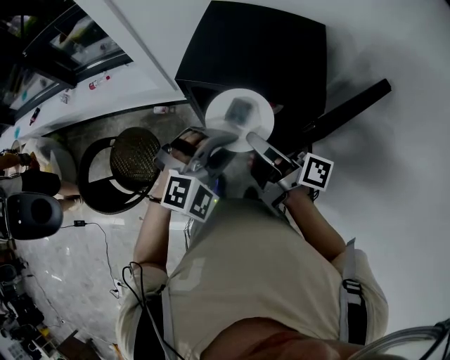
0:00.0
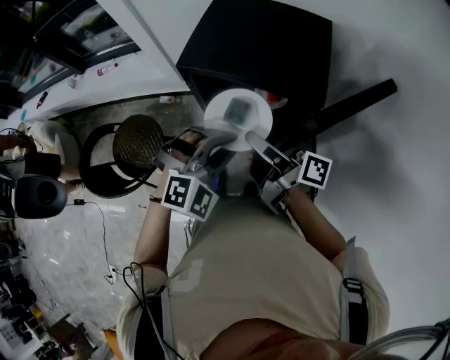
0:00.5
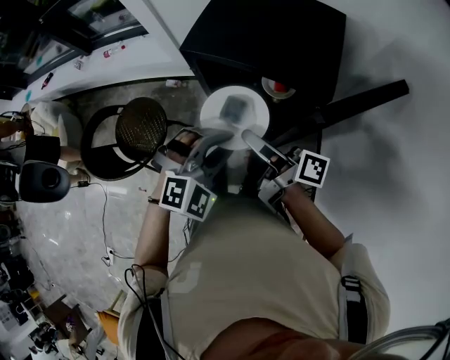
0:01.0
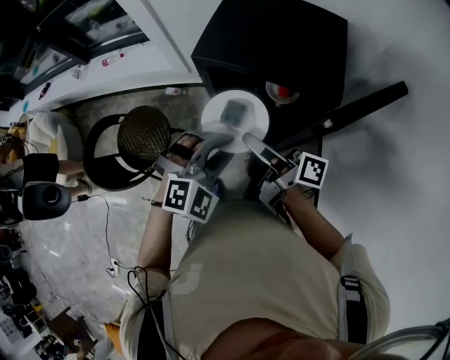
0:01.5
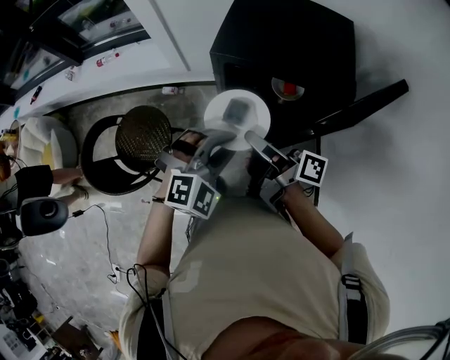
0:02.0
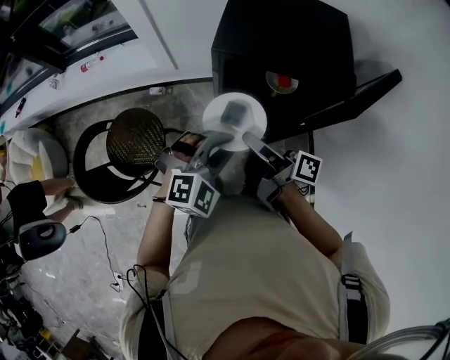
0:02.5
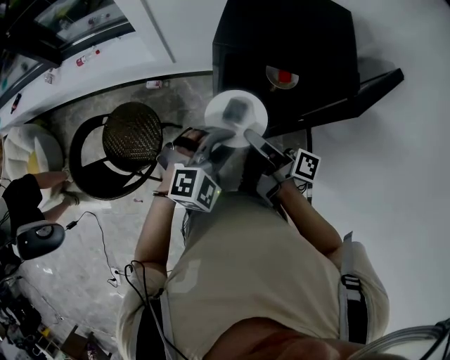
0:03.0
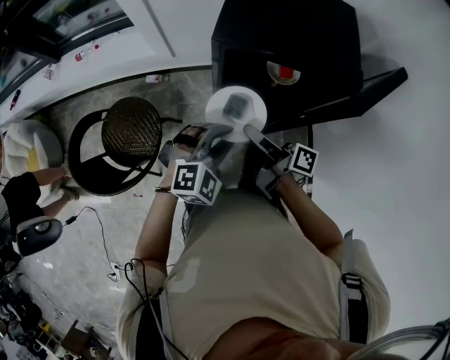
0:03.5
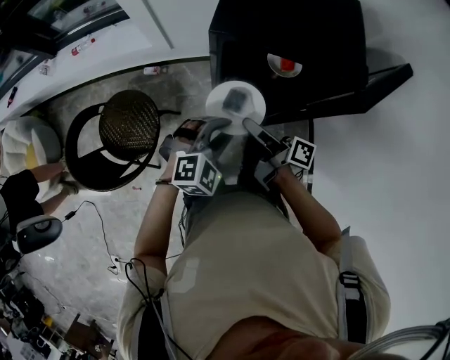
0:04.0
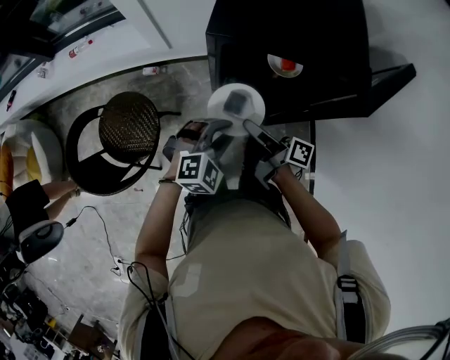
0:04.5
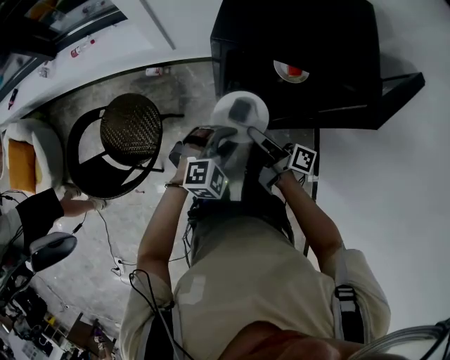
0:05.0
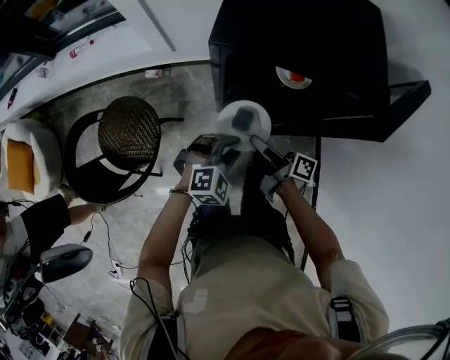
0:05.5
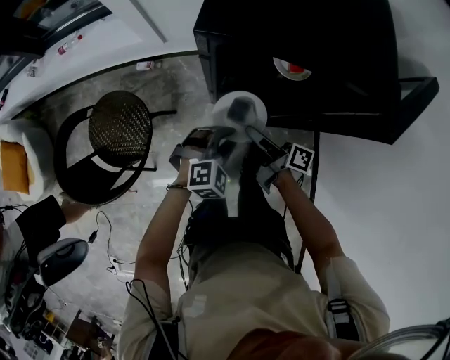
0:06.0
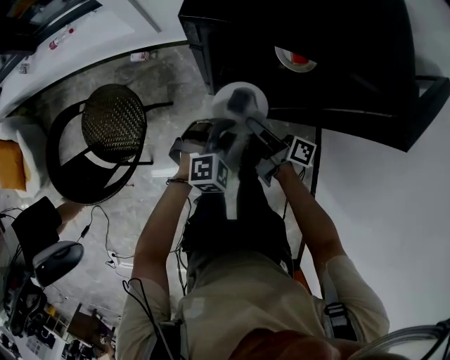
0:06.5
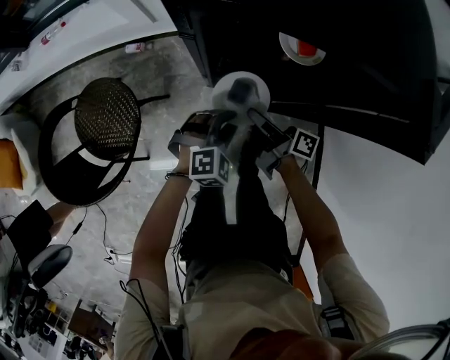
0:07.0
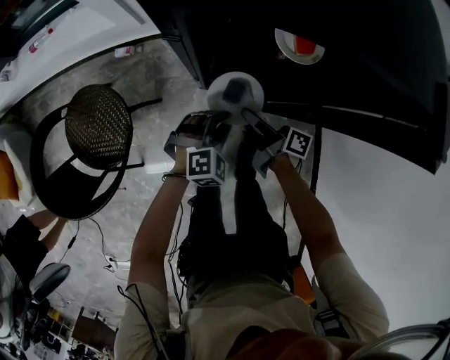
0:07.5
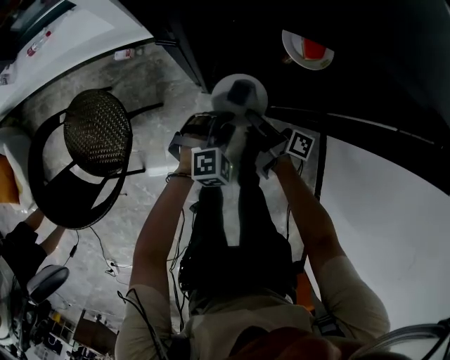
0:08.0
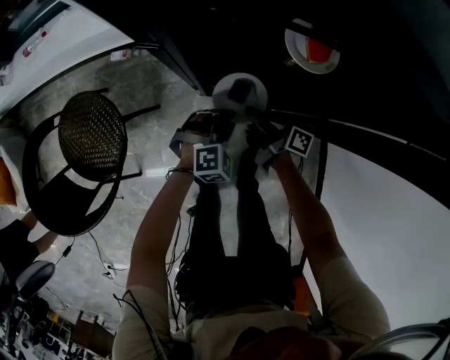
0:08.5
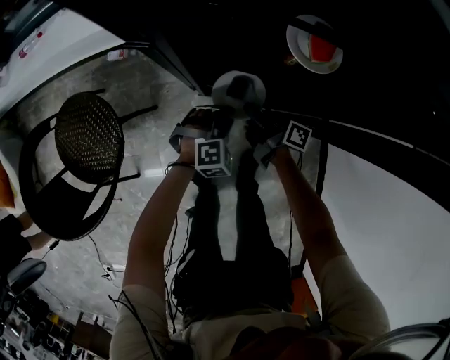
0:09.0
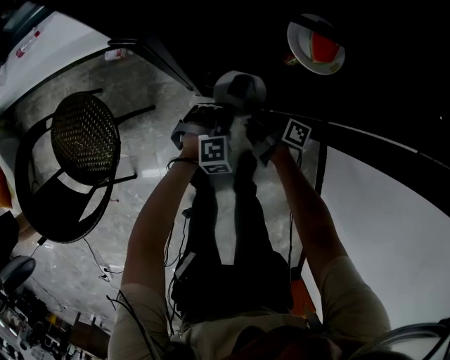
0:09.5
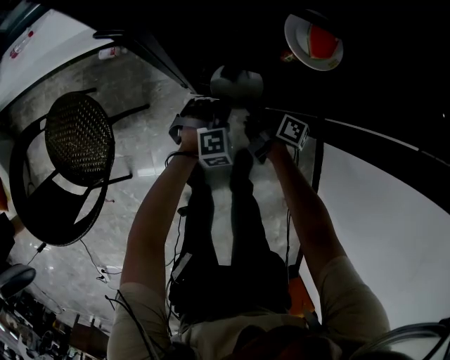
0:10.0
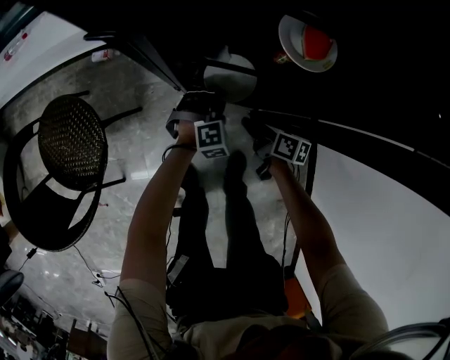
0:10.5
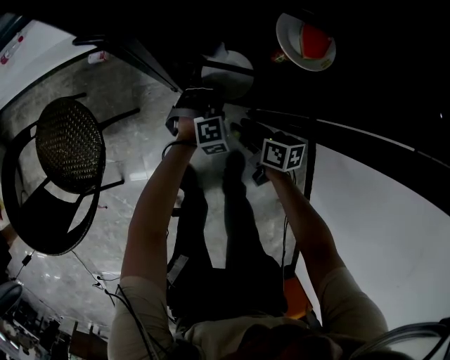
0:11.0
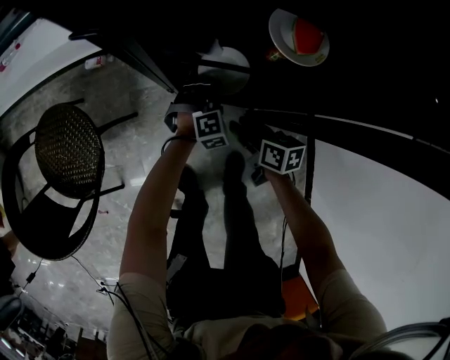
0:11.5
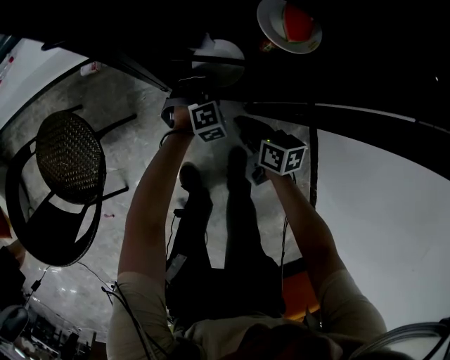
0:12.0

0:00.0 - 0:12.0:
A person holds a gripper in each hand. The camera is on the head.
0:00.0 - 0:02.0: The grippers both shift to the left by approximately 10 cm.
0:02.0 - 0:04.0: Both grippers move downward, some 10 cm.
0:04.0 - 0:06.0: The two grippers go roughly 15 cm downward.
0:06.0 - 0:08.0: The two grippers go approximately 15 cm downward.
0:08.0 - 0:10.0: The left gripper travels downward and forward by about 10 cm. The right gripper travels downward by approximately 10 cm.
0:10.0 - 0:12.0: The left gripper shifts about 5 cm forward, while the right gripper is displaced backward by some 5 cm, and turns by approximately 40 degrees.

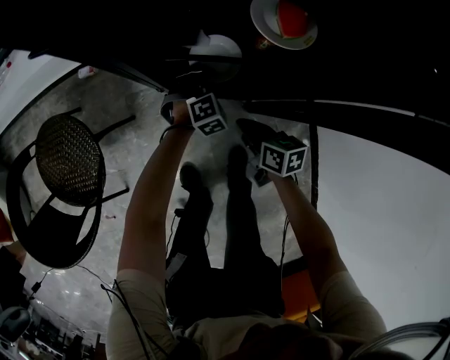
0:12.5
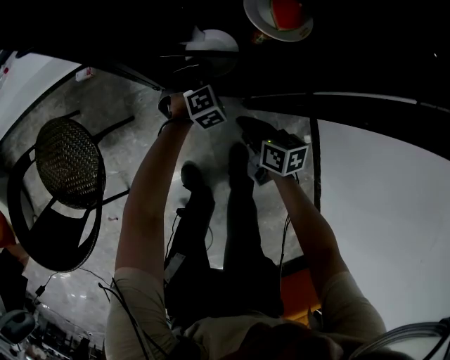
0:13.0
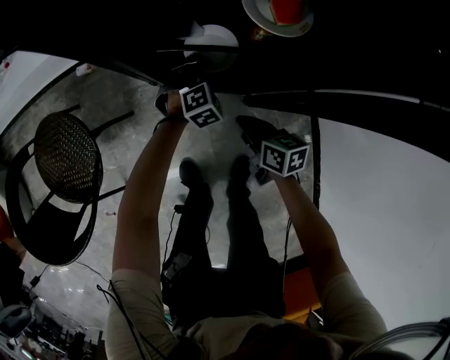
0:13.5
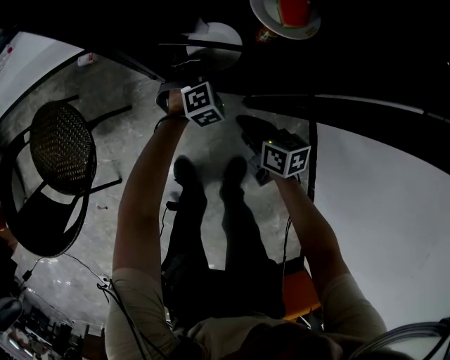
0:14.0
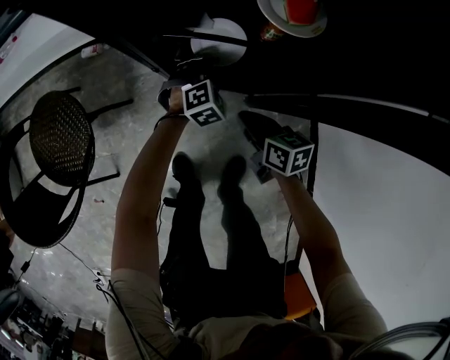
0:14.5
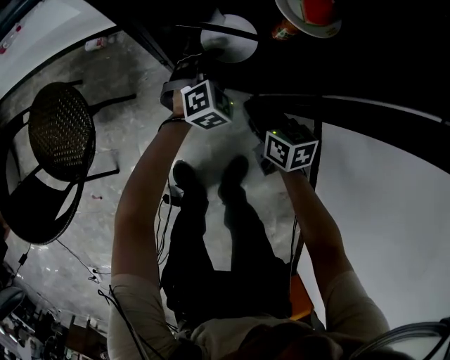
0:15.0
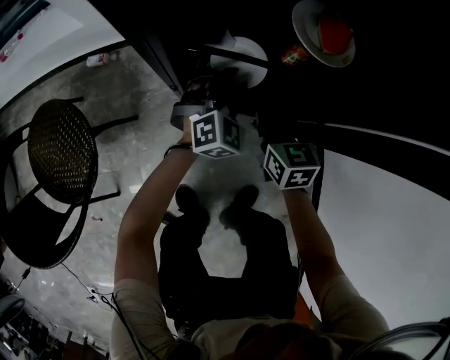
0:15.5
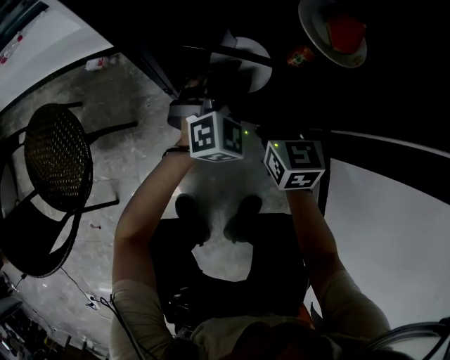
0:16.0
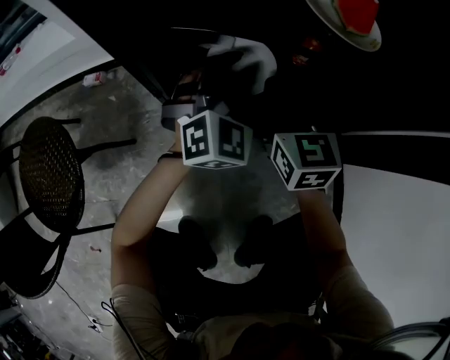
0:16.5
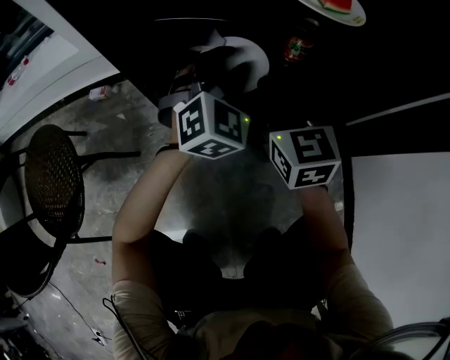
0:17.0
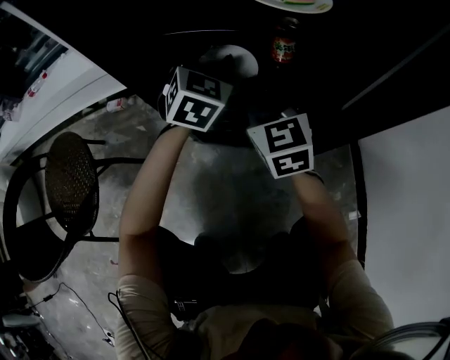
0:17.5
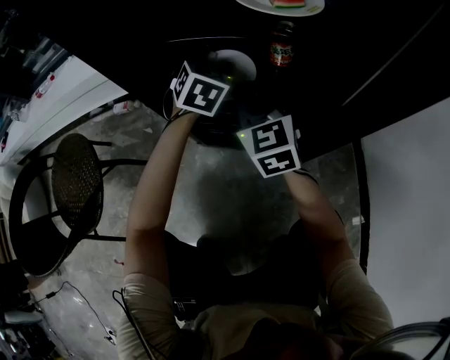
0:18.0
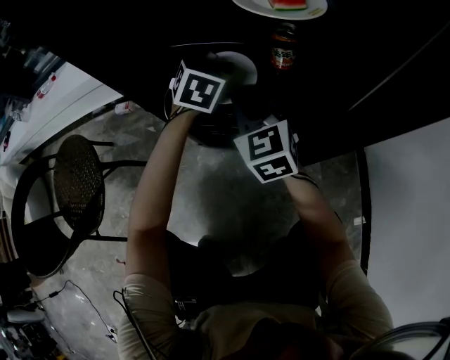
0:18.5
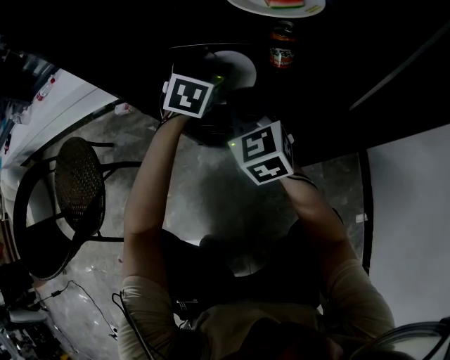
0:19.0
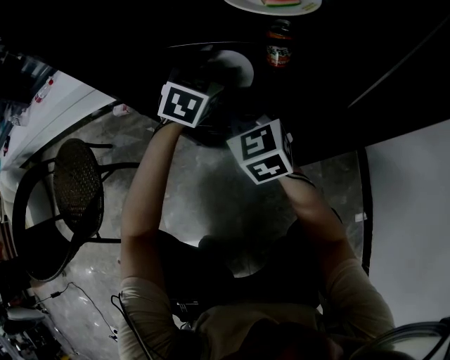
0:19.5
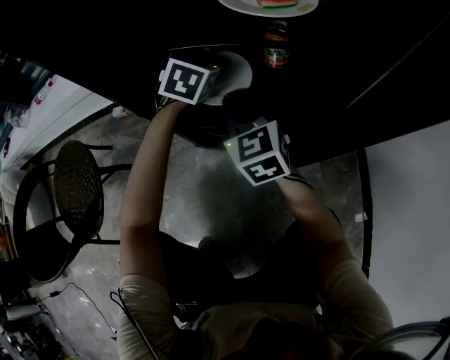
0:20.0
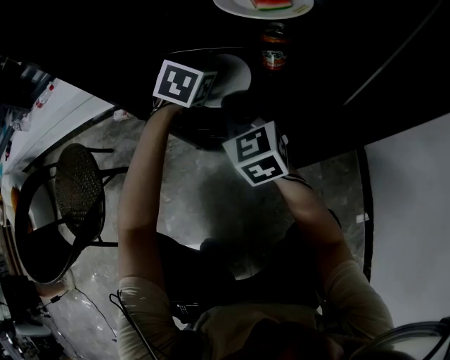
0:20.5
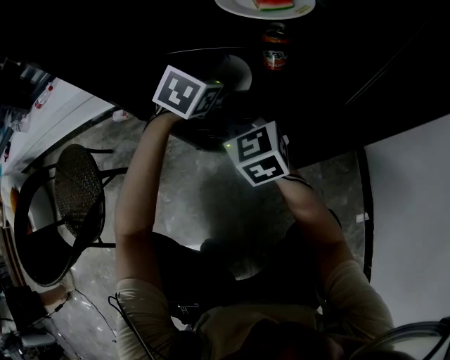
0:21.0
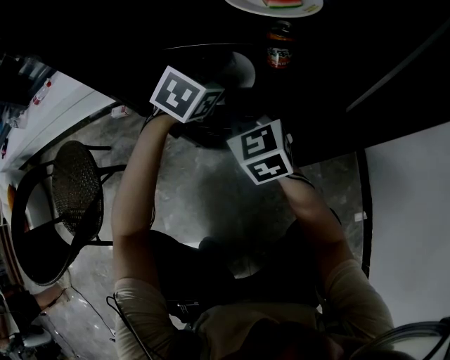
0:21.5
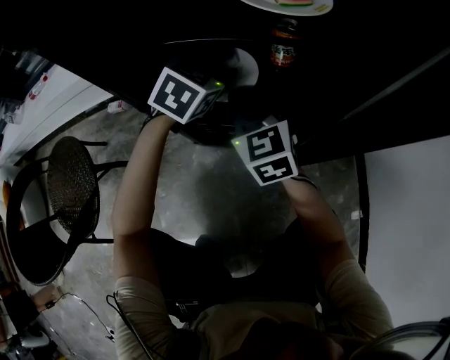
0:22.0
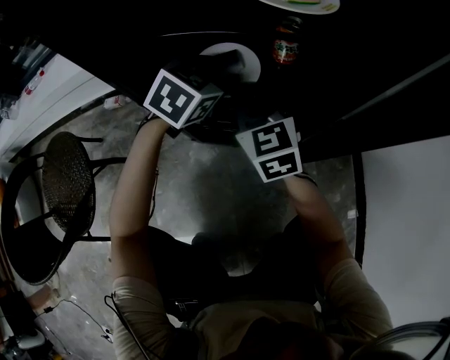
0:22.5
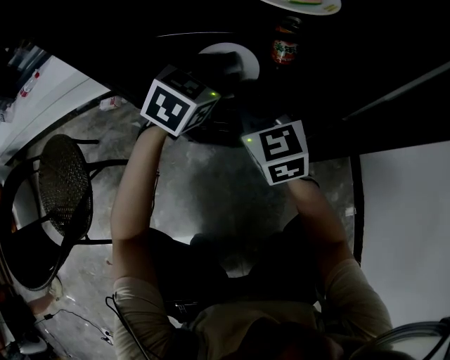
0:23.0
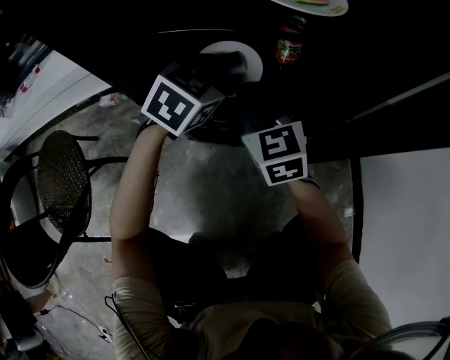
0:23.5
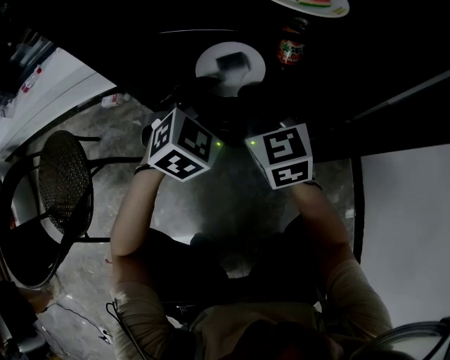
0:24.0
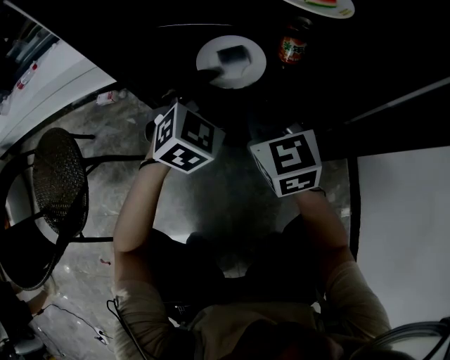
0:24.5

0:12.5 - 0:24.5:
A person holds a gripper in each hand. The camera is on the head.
0:12.5 - 0:14.5: There are only small adjustments of the grippers.
0:14.5 - 0:16.5: The left gripper shifts some 10 cm upward and forward, and angles its fingers upward, by about 30 degrees. The right gripper travels forward by about 15 cm, and changes its angle by approximately 50 degrees.
0:16.5 - 0:18.5: The left gripper goes some 10 cm forward and downward, changes its angle by roughly 30 degrees, and opens up.
0:18.5 - 0:20.5: There are only small adjustments of the grippers.
0:20.5 - 0:22.5: The left gripper moves backward, about 5 cm, and closes its fingers.
0:22.5 - 0:24.5: The left gripper changes its angle by roughly 20 degrees.

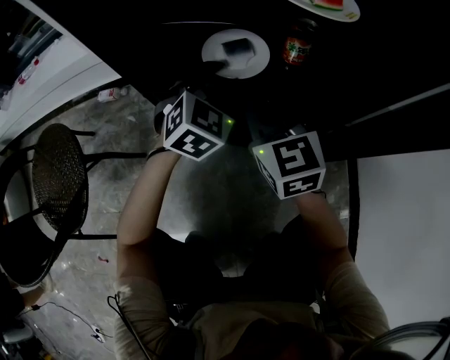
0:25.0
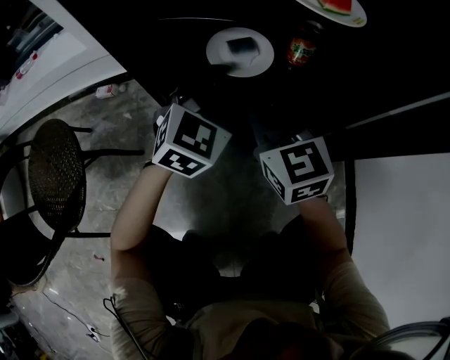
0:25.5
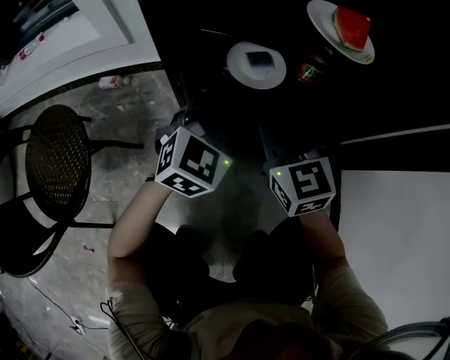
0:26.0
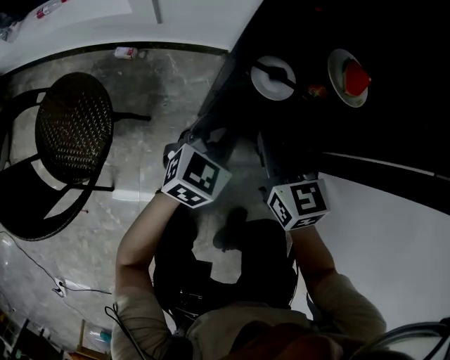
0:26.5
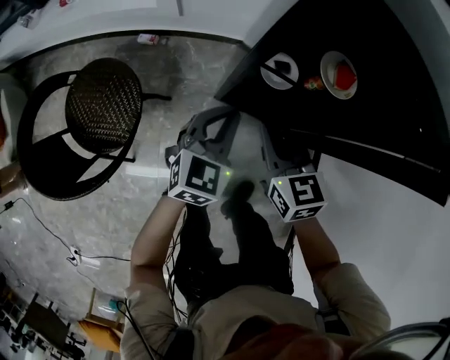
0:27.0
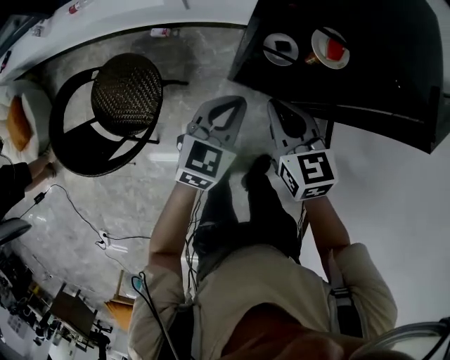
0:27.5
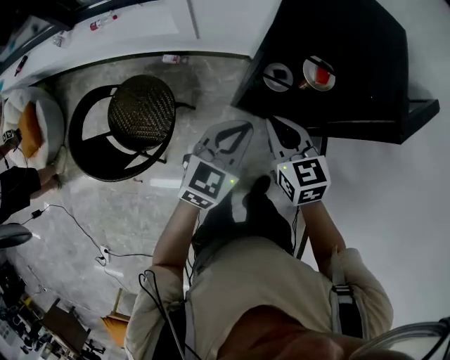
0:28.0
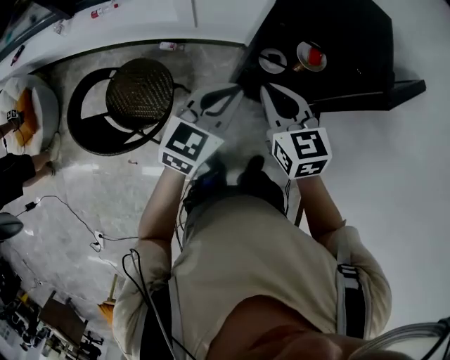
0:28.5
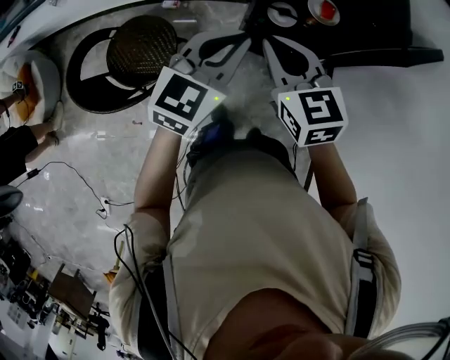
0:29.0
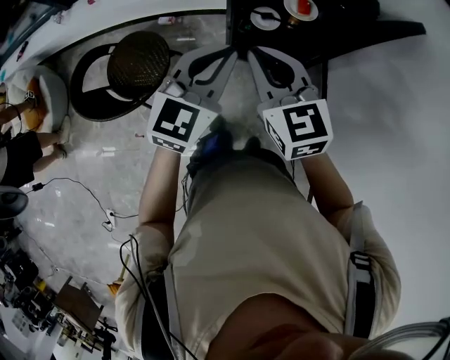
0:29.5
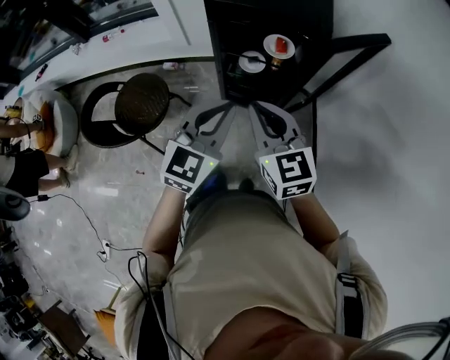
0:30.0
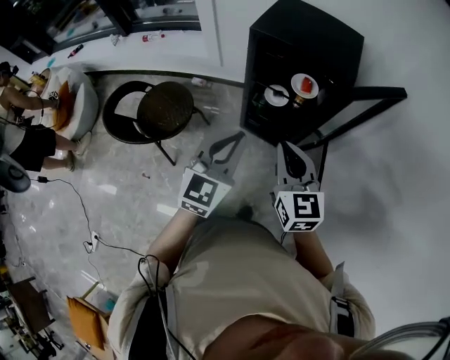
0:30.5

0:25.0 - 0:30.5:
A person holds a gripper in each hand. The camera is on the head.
0:25.0 - 0:27.0: The grippers both shift upward, backward and to the left by approximately 25 cm. The left gripper changes its angle by roughly 30 degrees, and closes, while the right gripper turns by approximately 20 degrees.
0:27.0 - 0:28.5: The grippers both shift upward by approximately 25 cm.
0:28.5 - 0:30.5: The two grippers go roughly 20 cm backward and to the right.
